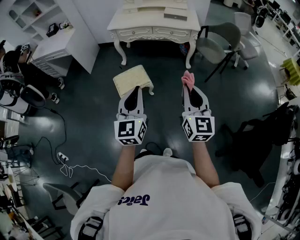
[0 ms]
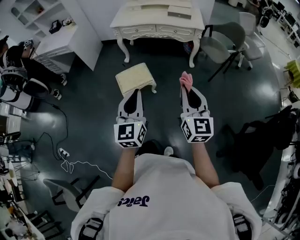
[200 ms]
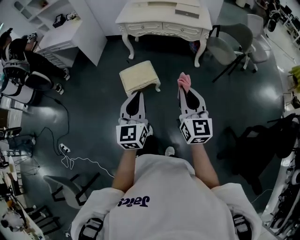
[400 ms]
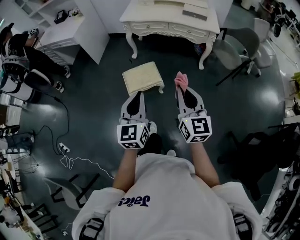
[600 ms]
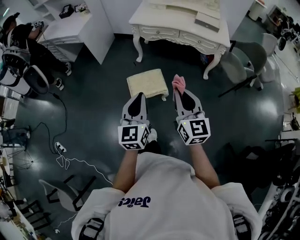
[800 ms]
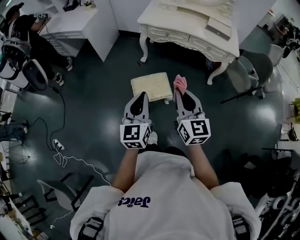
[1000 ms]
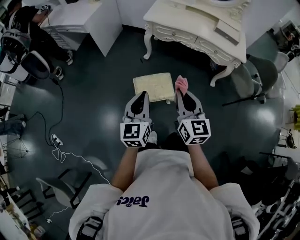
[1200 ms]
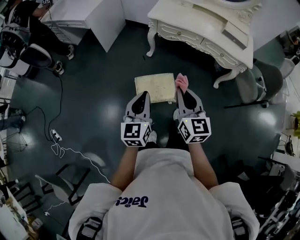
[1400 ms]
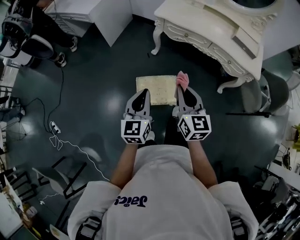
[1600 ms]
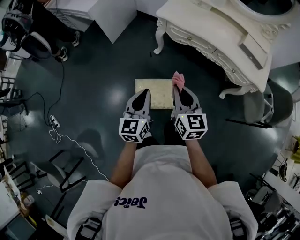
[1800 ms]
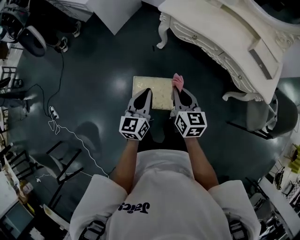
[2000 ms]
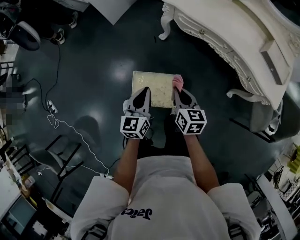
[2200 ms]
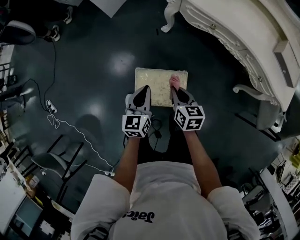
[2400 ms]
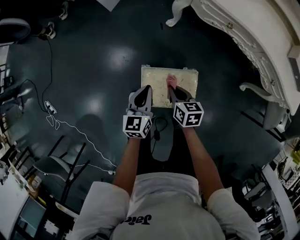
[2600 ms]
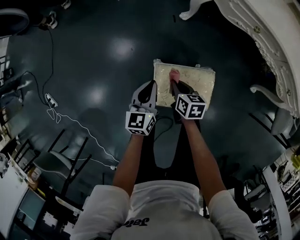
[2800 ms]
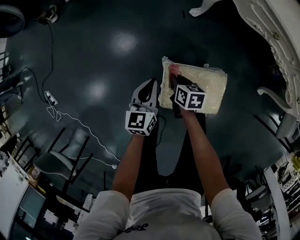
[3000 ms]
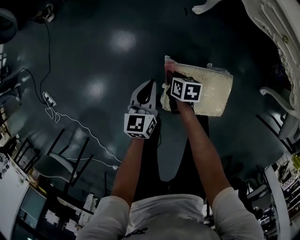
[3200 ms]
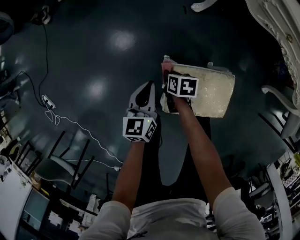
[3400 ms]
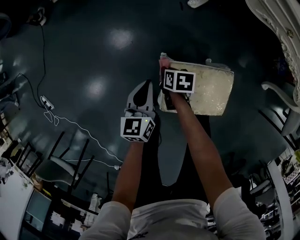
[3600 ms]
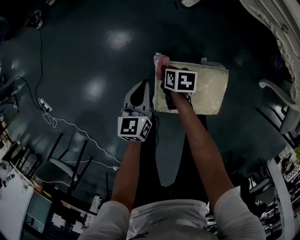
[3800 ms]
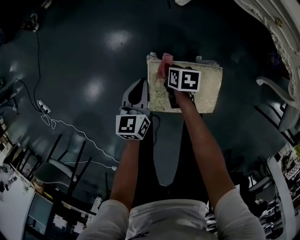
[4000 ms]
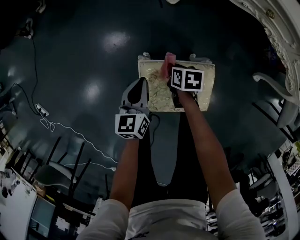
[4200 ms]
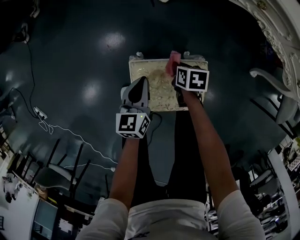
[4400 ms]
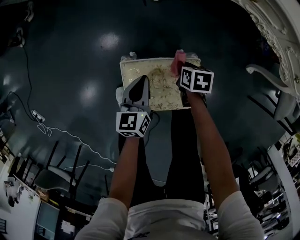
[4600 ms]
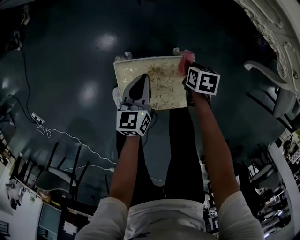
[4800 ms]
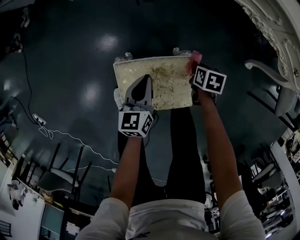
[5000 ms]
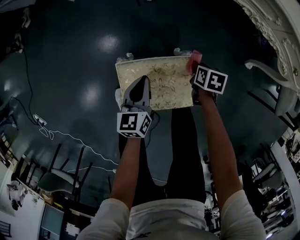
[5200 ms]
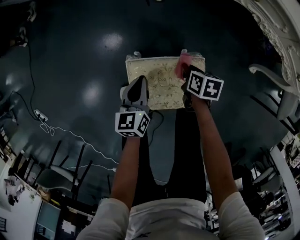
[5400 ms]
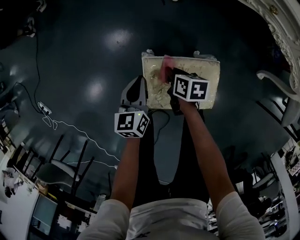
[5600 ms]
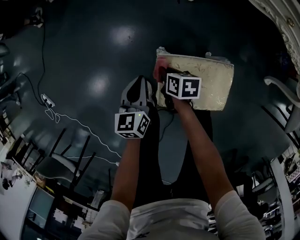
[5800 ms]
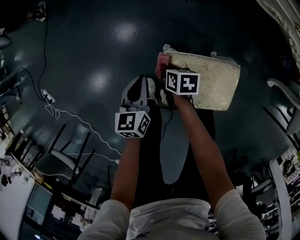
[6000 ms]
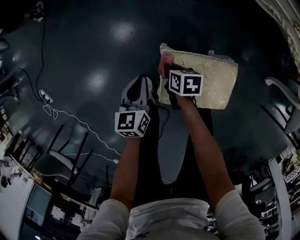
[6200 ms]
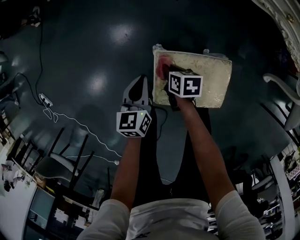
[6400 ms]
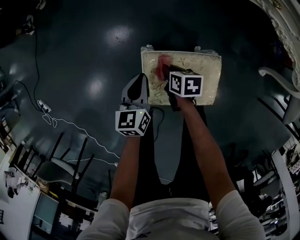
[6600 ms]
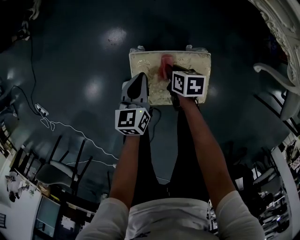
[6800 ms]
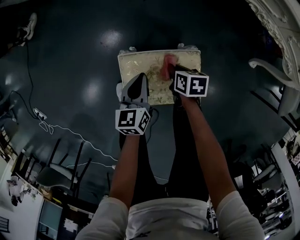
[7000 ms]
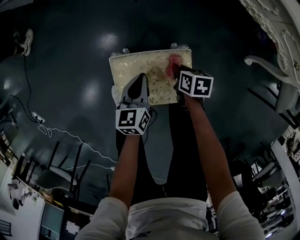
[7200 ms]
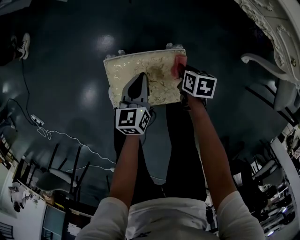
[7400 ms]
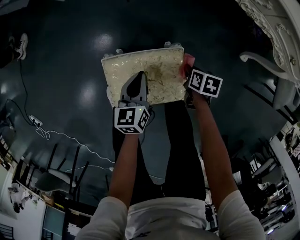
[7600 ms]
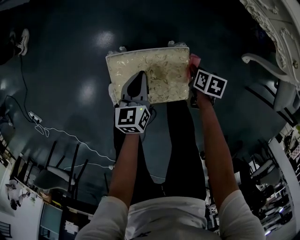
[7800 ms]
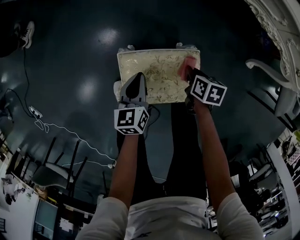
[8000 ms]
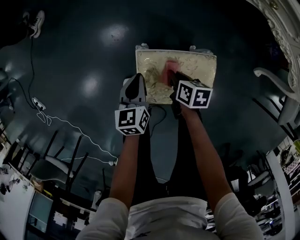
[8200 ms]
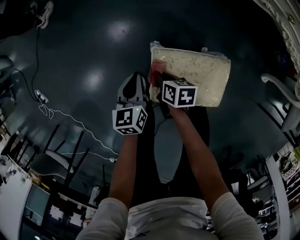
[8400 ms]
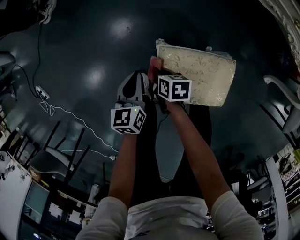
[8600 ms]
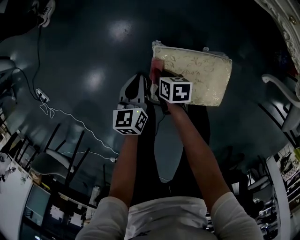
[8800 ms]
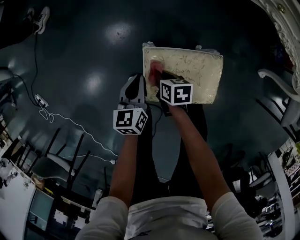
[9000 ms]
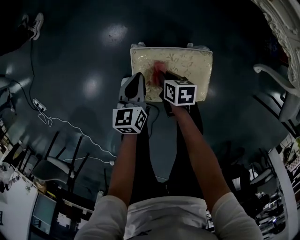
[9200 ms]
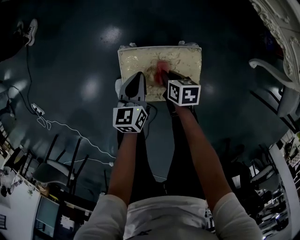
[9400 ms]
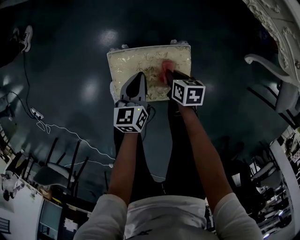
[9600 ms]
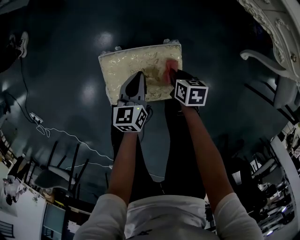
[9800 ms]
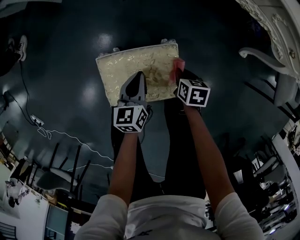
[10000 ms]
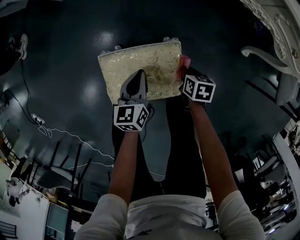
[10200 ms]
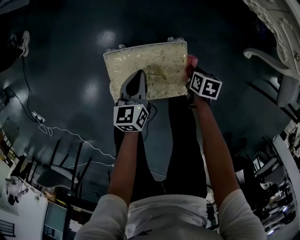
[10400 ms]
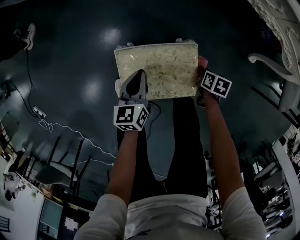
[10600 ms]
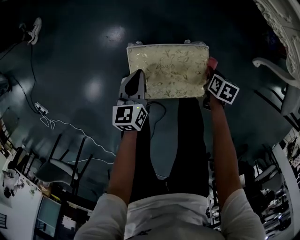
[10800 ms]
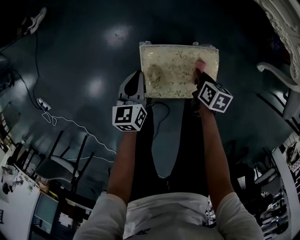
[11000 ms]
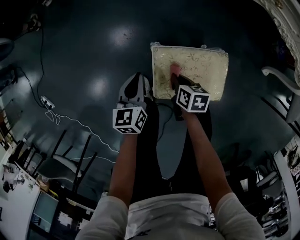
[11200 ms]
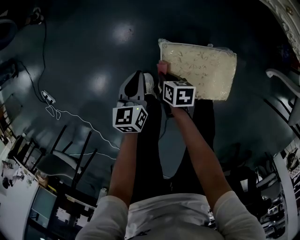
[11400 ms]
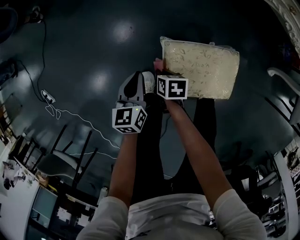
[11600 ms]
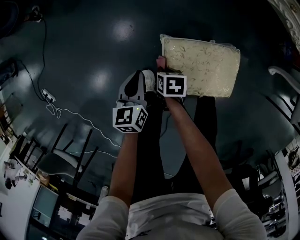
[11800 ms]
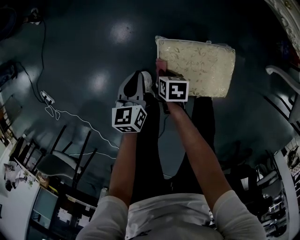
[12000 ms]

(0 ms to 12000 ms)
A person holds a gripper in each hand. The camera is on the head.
0 ms - 1600 ms: Both grippers are carried forward and to the left, some 50 cm. The left gripper changes its angle by approximately 20 degrees. The right gripper turns by some 30 degrees.
1600 ms - 3000 ms: The right gripper moves downward, about 50 cm, and tilts its fingers approximately 40 degrees downward; the left gripper is displaced downward and forward by about 50 cm, and swivels some 20 degrees.
3000 ms - 4400 ms: The grippers both shift to the right and downward by about 15 cm.
4400 ms - 6000 ms: The right gripper moves roughly 20 cm. Meanwhile the left gripper changes place by approximately 15 cm.
6000 ms - 7600 ms: The two grippers go some 30 cm to the right. The right gripper swivels some 20 degrees.
7600 ms - 9000 ms: The right gripper moves about 30 cm, and turns by some 20 degrees. Meanwhile the left gripper moves some 20 cm.
9000 ms - 10400 ms: The right gripper shifts about 30 cm to the right, and swivels about 20 degrees. Meanwhile the left gripper heads to the right, covering some 15 cm.
10400 ms - 12000 ms: The left gripper ends up approximately 20 cm from where it was; the right gripper goes upward and returns, roughly 5 cm each way.

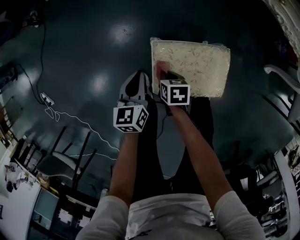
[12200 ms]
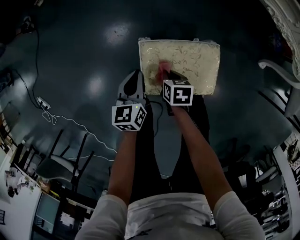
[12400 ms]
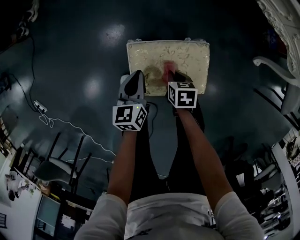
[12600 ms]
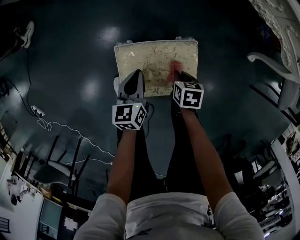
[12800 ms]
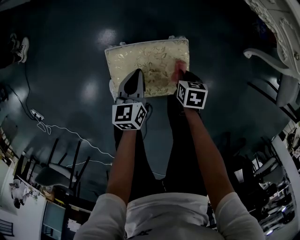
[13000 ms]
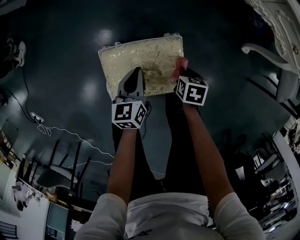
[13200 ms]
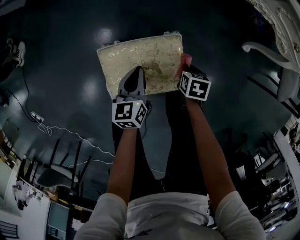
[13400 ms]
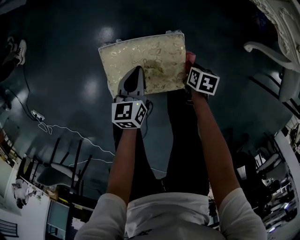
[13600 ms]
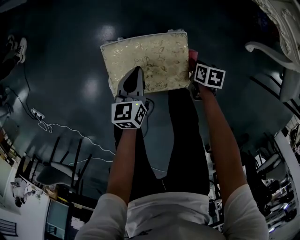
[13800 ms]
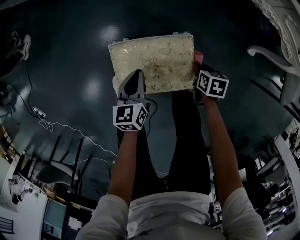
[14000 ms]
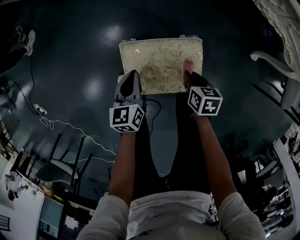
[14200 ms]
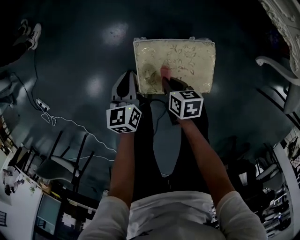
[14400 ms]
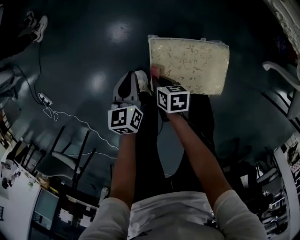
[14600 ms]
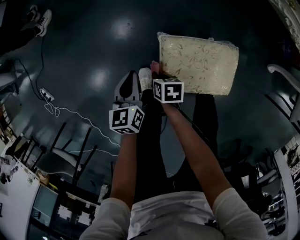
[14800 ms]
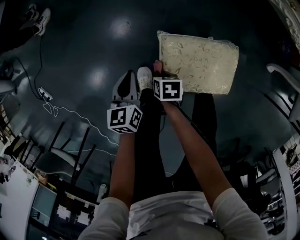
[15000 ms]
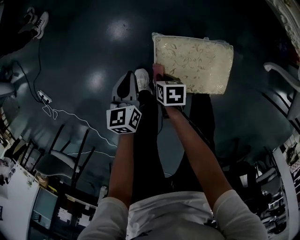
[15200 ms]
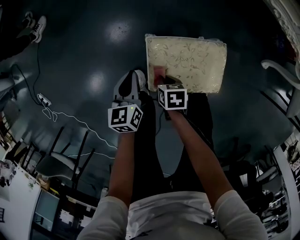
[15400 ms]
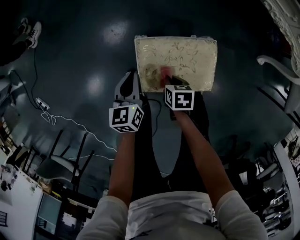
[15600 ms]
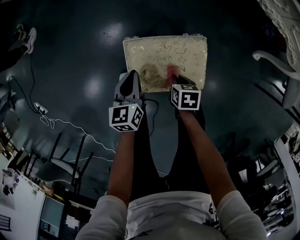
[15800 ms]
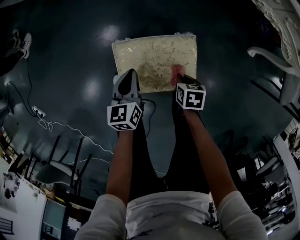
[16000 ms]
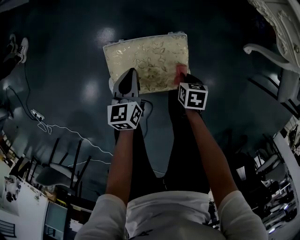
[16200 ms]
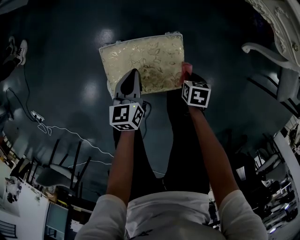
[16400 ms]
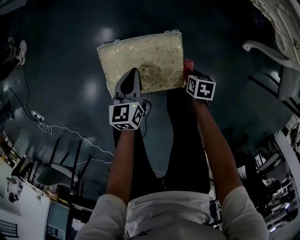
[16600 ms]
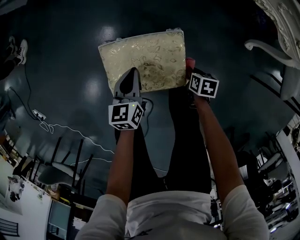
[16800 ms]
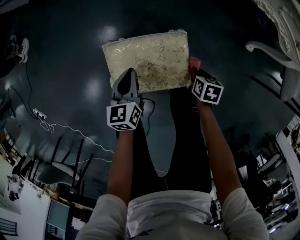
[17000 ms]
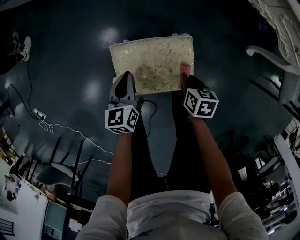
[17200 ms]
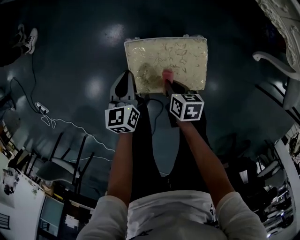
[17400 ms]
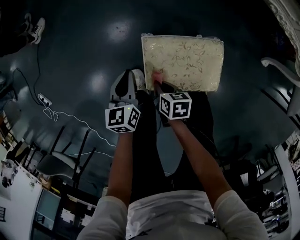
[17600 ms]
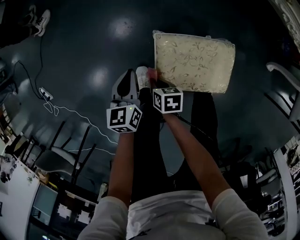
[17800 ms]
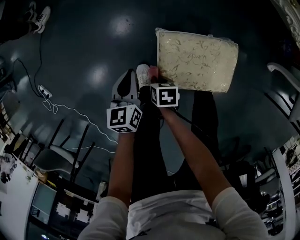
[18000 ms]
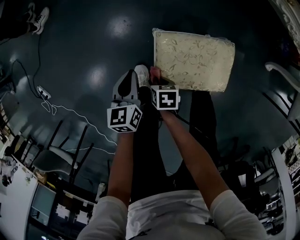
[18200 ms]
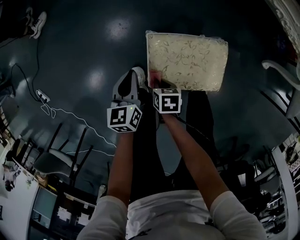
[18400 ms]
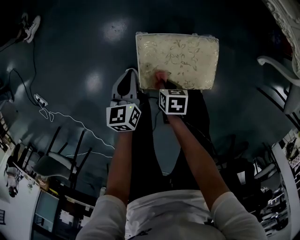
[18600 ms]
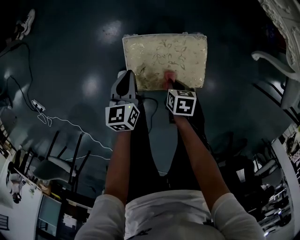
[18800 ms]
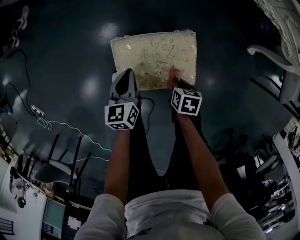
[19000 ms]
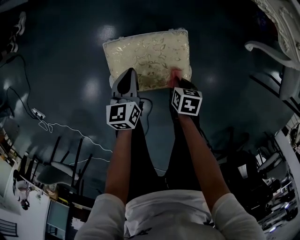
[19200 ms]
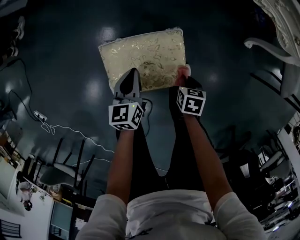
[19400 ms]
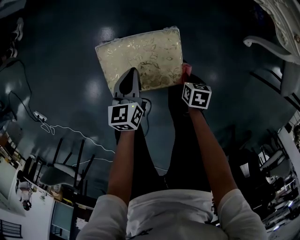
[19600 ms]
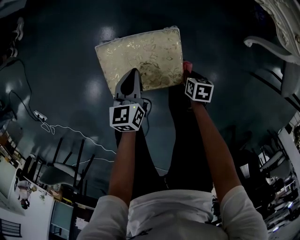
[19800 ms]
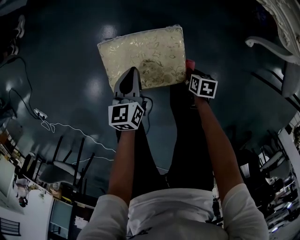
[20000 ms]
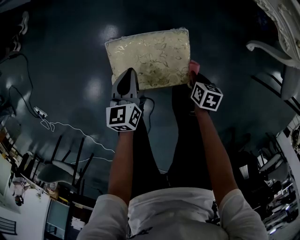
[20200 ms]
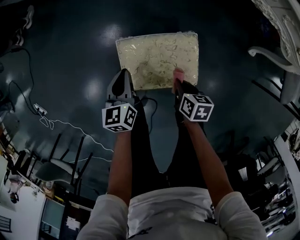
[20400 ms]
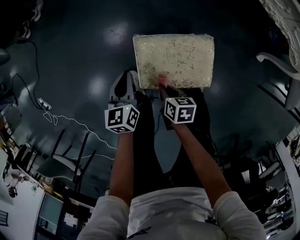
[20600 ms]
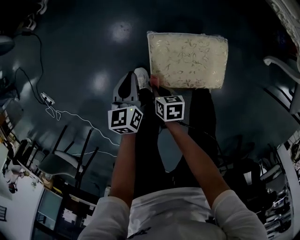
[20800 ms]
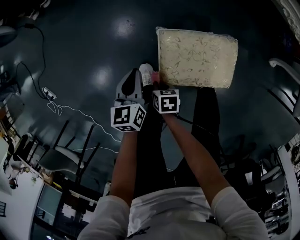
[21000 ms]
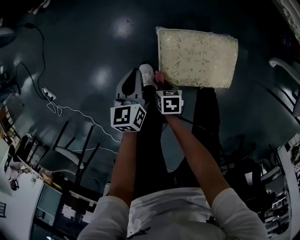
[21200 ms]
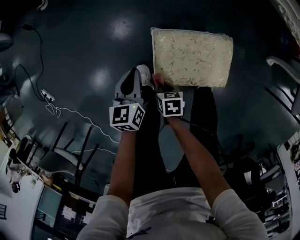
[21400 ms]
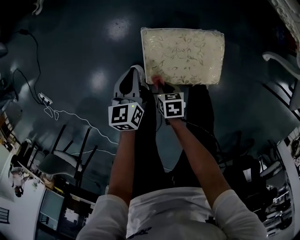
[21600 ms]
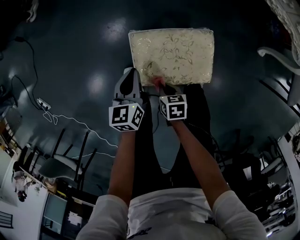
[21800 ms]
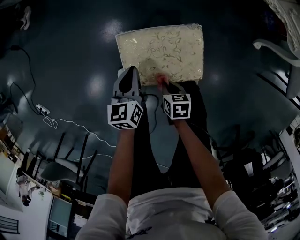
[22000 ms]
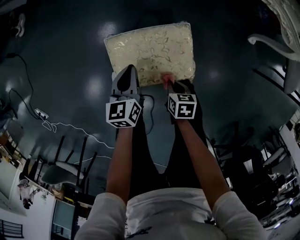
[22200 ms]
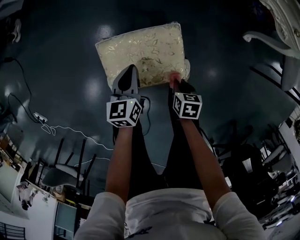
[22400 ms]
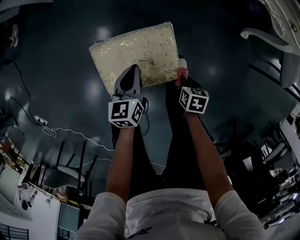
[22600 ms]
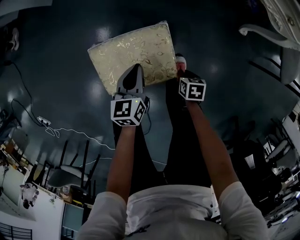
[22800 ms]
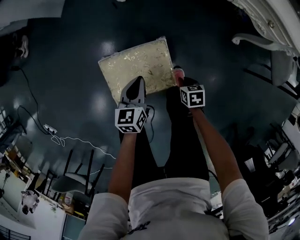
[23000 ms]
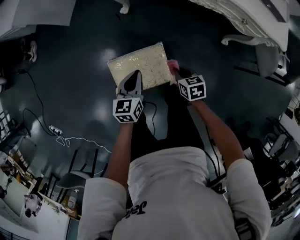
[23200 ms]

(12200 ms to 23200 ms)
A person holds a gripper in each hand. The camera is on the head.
12200 ms - 13800 ms: The left gripper changes place by roughly 20 cm. Meanwhile the right gripper shifts by some 35 cm.
13800 ms - 15400 ms: The right gripper shifts by approximately 30 cm. The left gripper shifts by about 20 cm.
15400 ms - 17000 ms: The left gripper changes place by approximately 15 cm. Meanwhile the right gripper changes place by roughly 30 cm, and swivels approximately 20 degrees.
17000 ms - 18400 ms: The left gripper shifts by roughly 15 cm. Meanwhile the right gripper changes place by approximately 35 cm.
18400 ms - 20000 ms: The right gripper moves approximately 35 cm. Meanwhile the left gripper ends up roughly 20 cm from where it was.
20000 ms - 21600 ms: The left gripper moves some 20 cm. Meanwhile the right gripper shifts by roughly 30 cm.
21600 ms - 23200 ms: The right gripper shifts by approximately 35 cm, while the left gripper shifts by about 25 cm, and rotates roughly 20 degrees.
